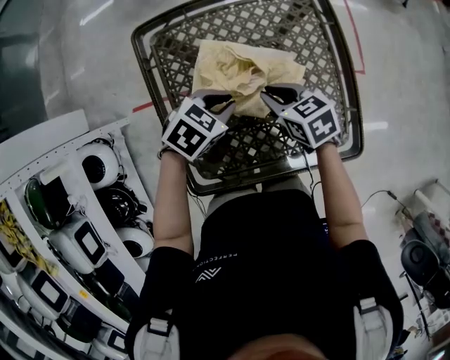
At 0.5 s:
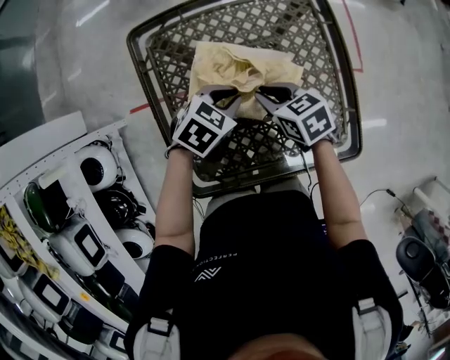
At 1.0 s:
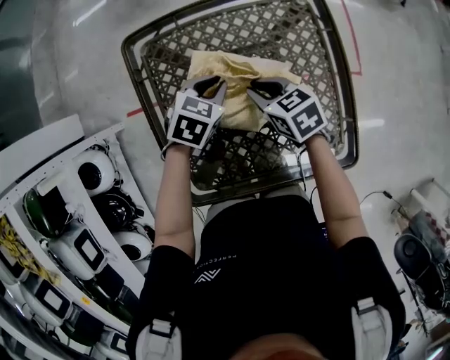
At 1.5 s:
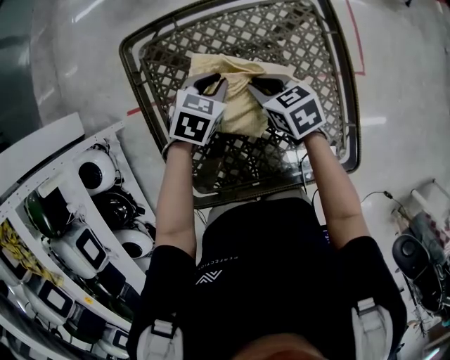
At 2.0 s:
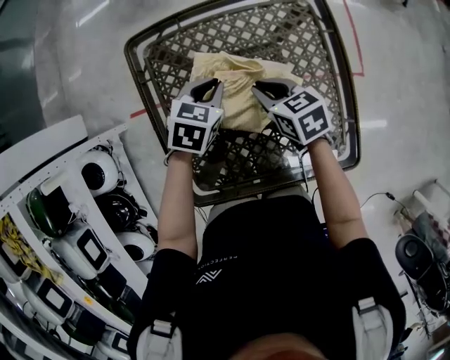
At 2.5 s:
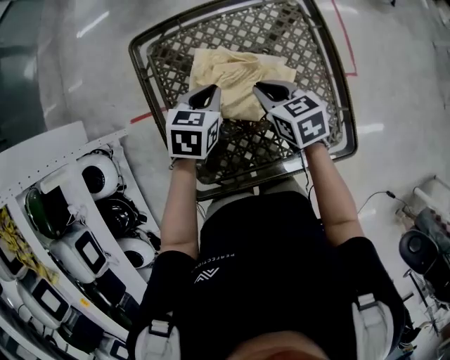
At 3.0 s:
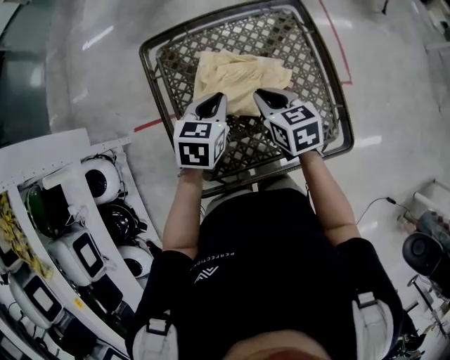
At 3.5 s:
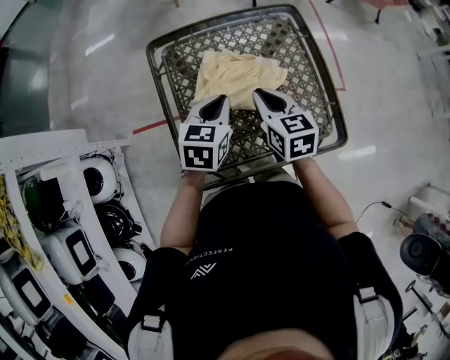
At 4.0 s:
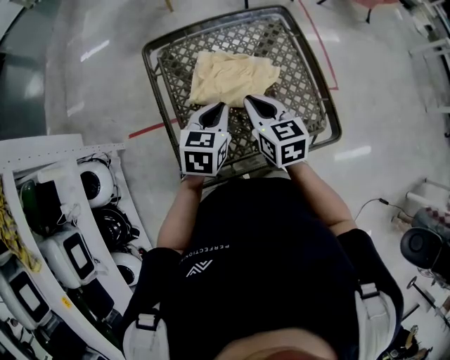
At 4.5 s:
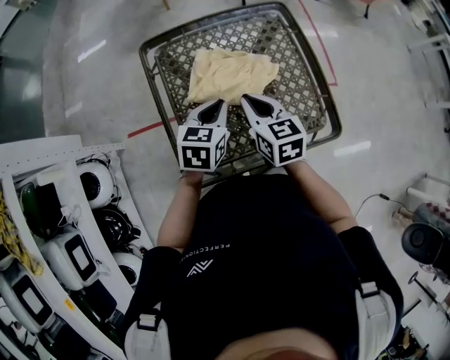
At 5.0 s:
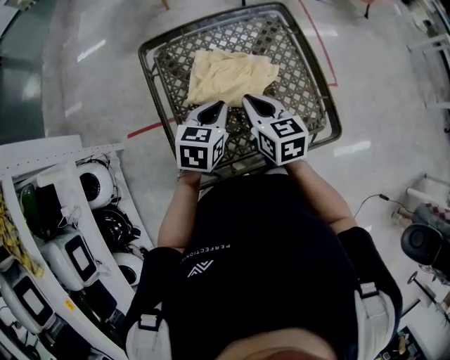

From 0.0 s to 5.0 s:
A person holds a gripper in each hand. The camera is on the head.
From 0.0 s to 2.5 s: The left gripper changes its angle by approximately 30 degrees.
From 2.5 s to 5.0 s: Both grippers travel together backward and upward, roughly 10 cm.

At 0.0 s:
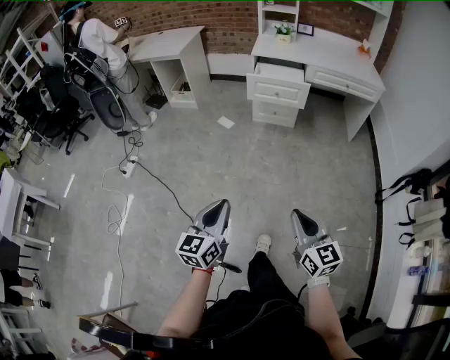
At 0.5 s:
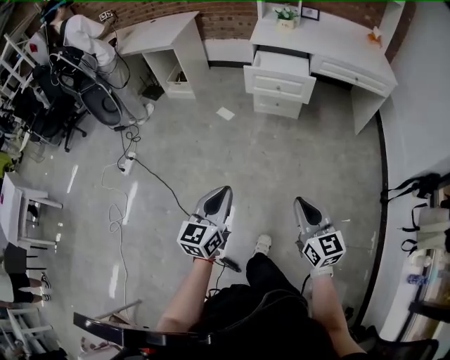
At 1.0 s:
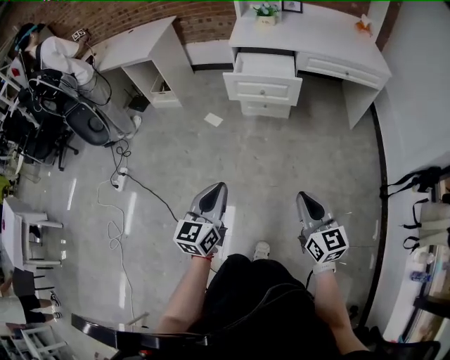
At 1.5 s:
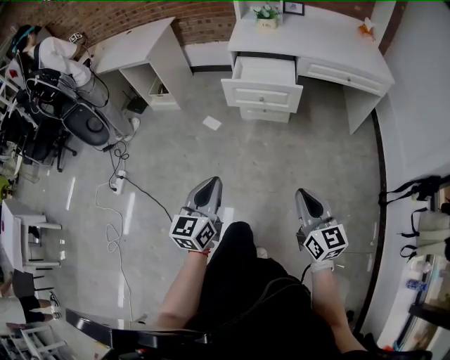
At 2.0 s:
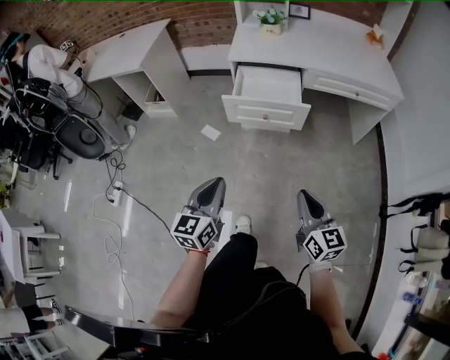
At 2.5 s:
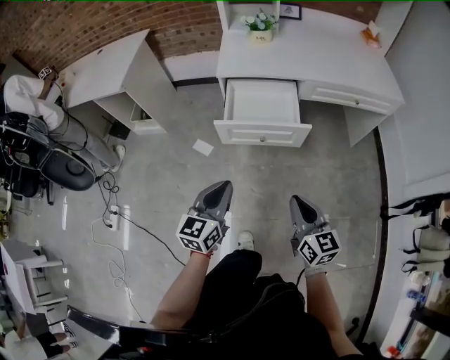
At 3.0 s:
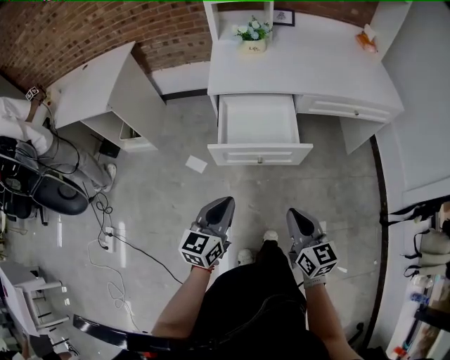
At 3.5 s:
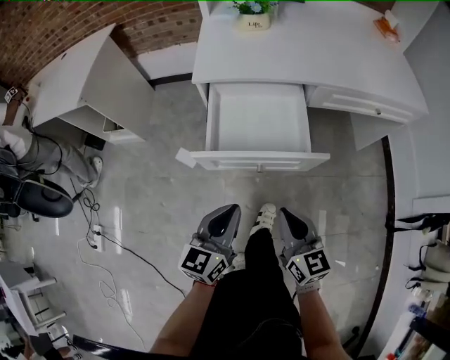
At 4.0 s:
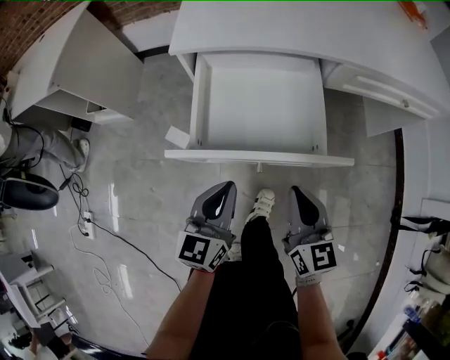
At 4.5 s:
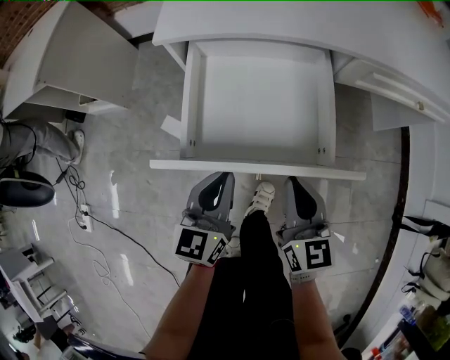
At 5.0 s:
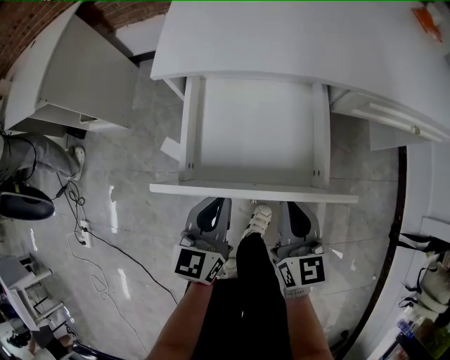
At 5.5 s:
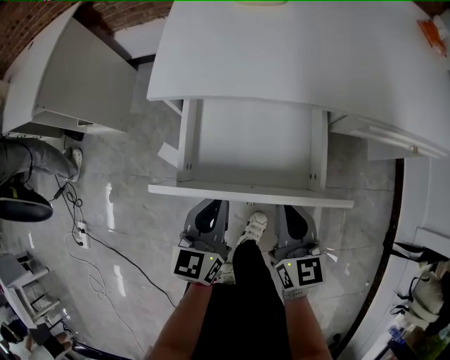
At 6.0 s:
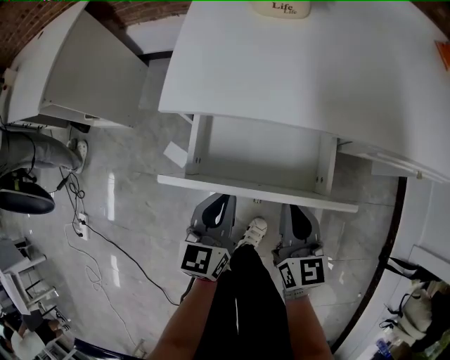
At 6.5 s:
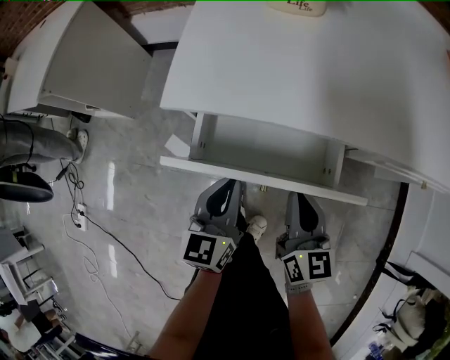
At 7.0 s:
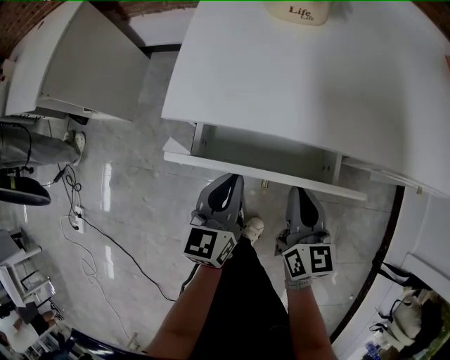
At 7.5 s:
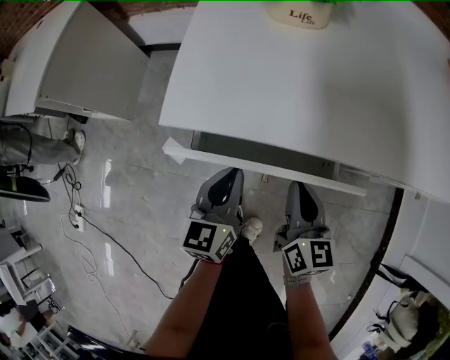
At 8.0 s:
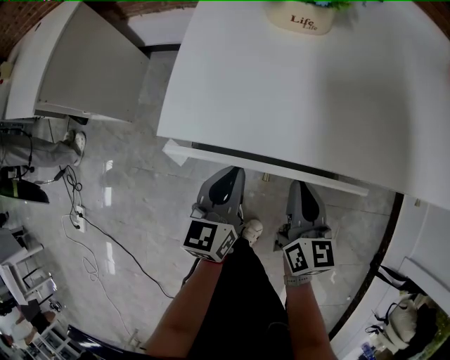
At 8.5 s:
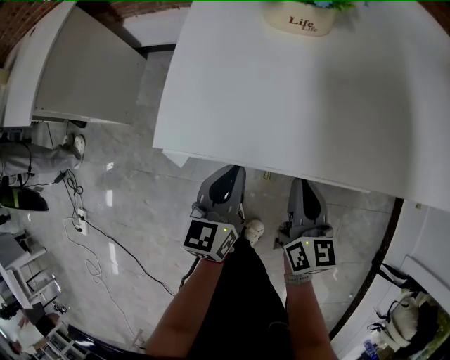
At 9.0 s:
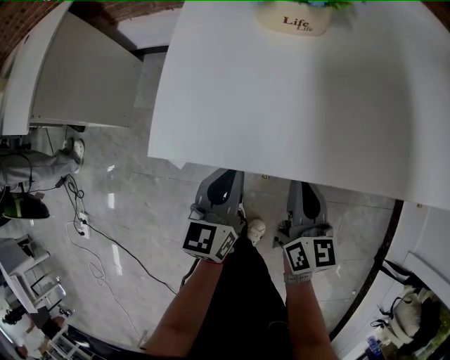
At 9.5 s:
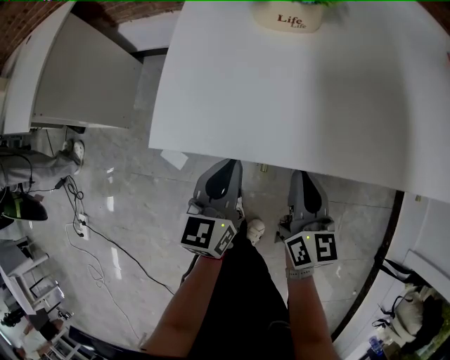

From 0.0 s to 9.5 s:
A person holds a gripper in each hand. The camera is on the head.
From 0.0 s to 2.0 s: The two grippers travel together, forward, about 40 cm.
From 2.0 s to 4.0 s: The grippers both shift forward and downward by approximately 40 cm.
From 4.0 s to 5.5 s: Both grippers travel together forward, some 10 cm.
From 5.5 s to 7.5 s: Both grippers move forward, some 10 cm.
From 7.5 s to 9.5 s: The left gripper goes approximately 5 cm forward; the right gripper shifts by approximately 5 cm.

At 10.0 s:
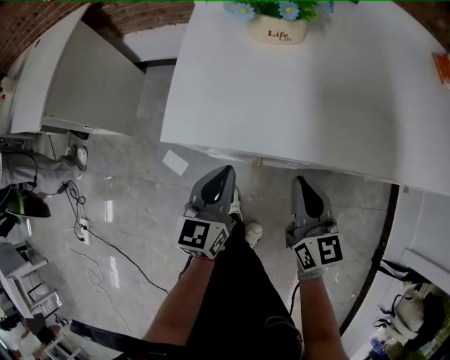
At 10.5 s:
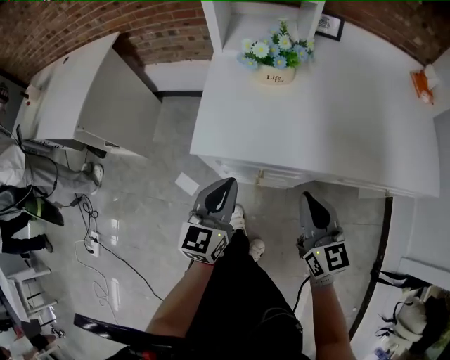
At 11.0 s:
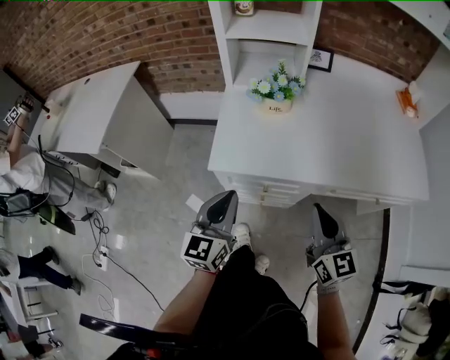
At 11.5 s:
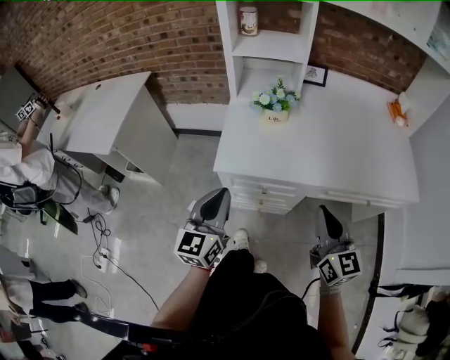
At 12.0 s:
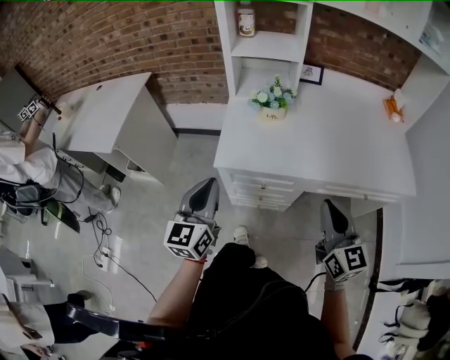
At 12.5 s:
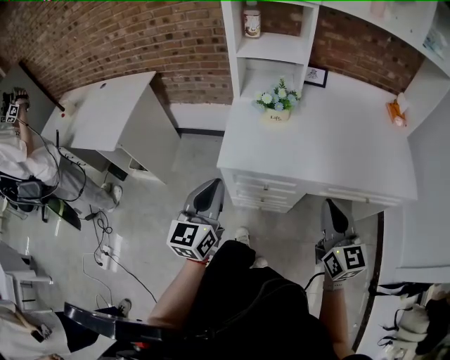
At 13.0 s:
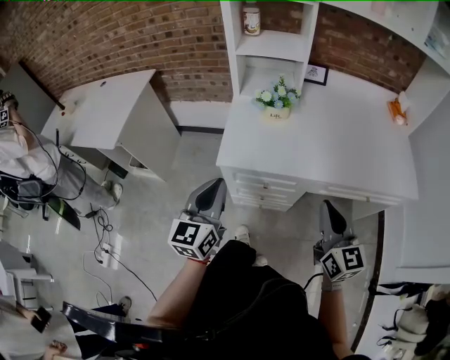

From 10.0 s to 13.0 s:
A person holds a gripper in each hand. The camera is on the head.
From 10.0 s to 11.5 s: The grippers both shift upward by roughly 25 cm.
From 11.5 s to 13.0 s: The grippers move only a little.

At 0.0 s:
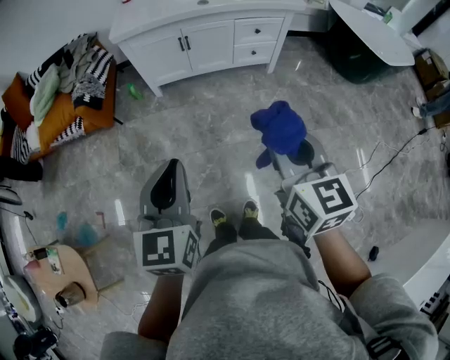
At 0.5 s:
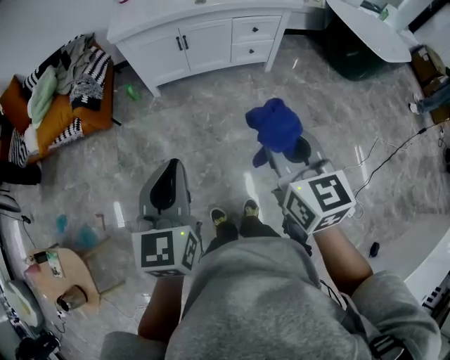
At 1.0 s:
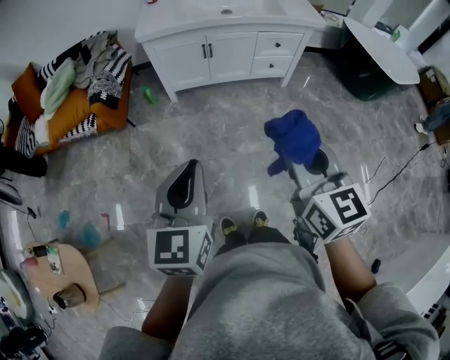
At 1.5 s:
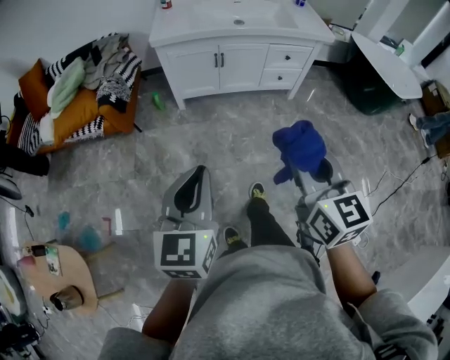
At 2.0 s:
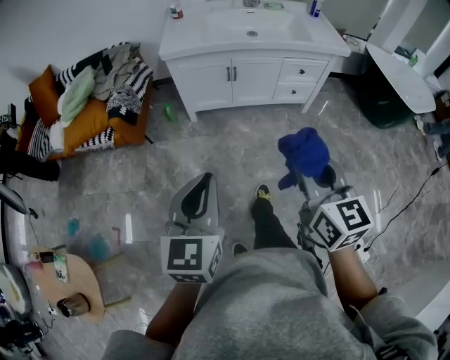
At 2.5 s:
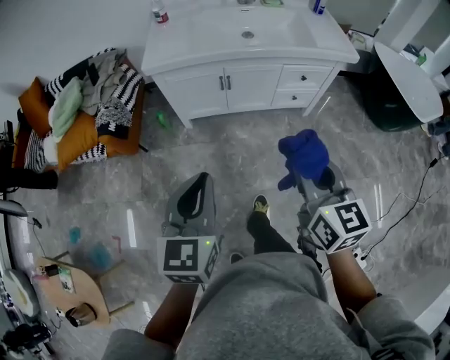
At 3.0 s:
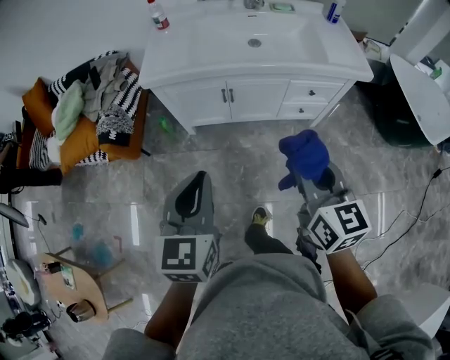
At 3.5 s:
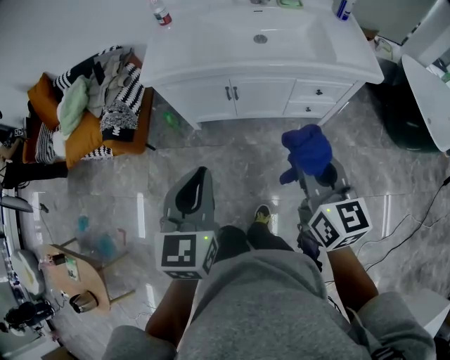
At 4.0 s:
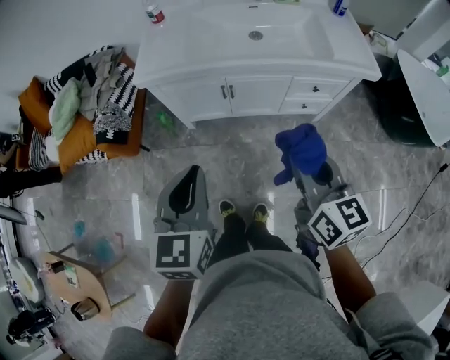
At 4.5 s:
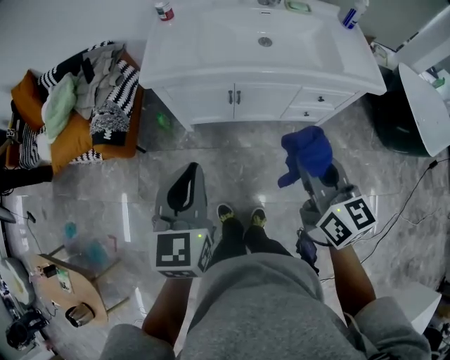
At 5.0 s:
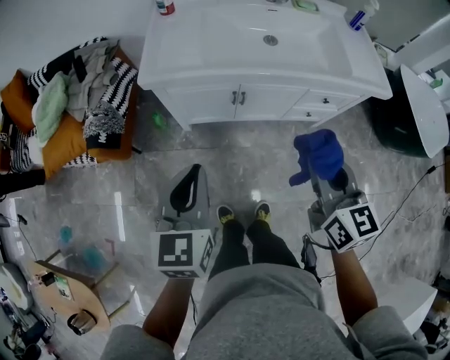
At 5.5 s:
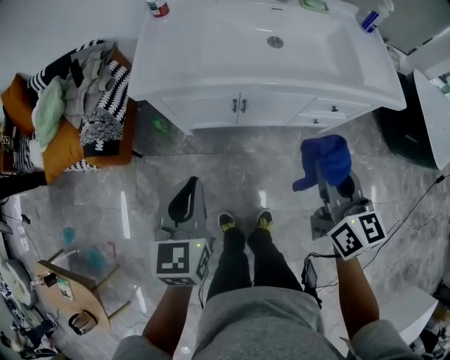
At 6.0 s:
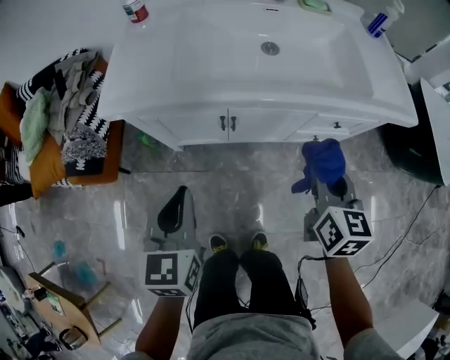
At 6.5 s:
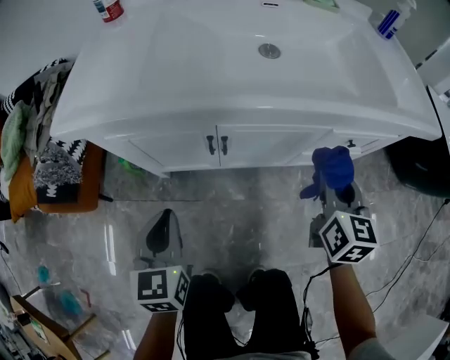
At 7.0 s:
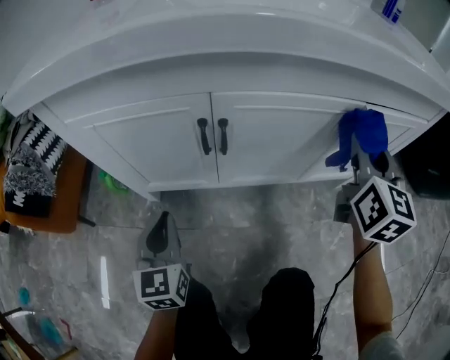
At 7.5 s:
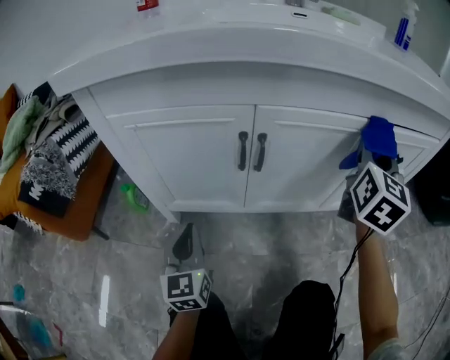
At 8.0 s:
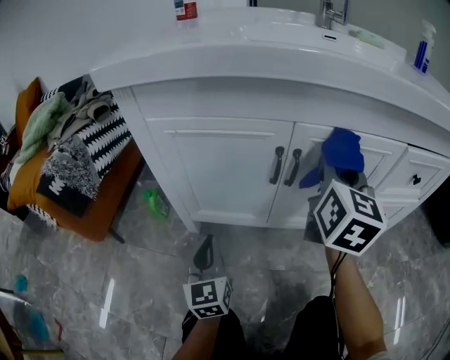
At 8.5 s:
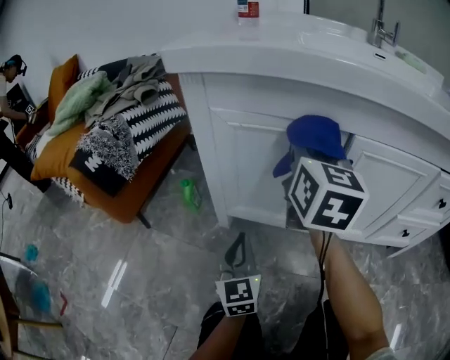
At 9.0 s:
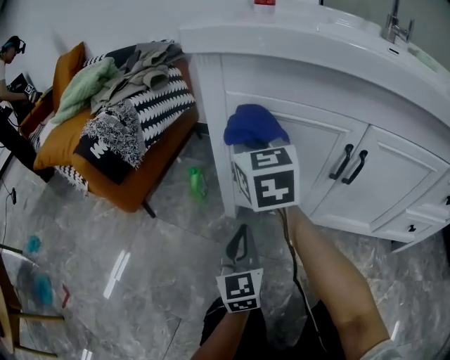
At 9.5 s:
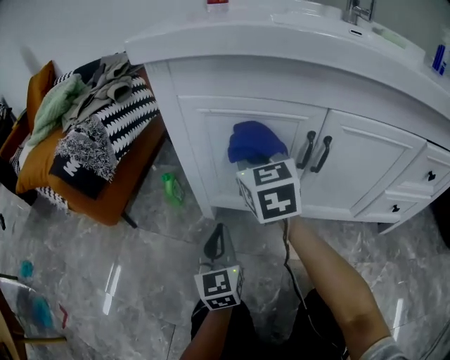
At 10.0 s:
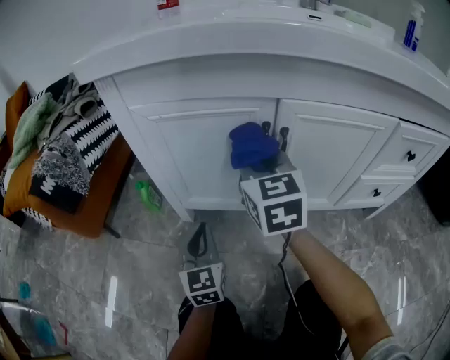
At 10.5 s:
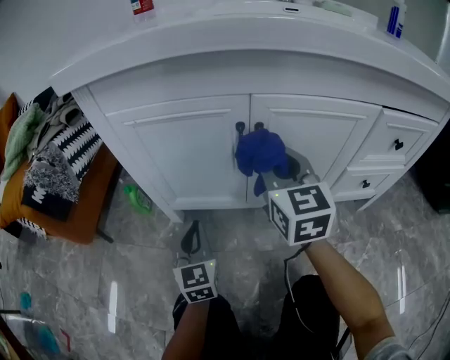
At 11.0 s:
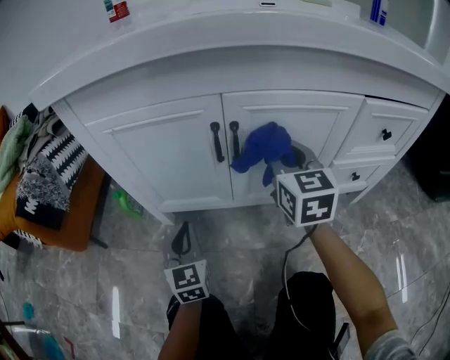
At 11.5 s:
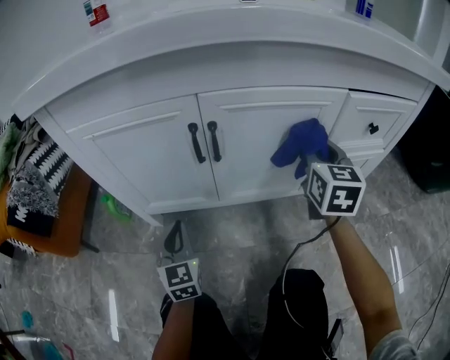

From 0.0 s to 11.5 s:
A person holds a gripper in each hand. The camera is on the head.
From 0.0 s to 2.0 s: Both grippers move to the left and forward, about 10 cm.
From 2.0 s to 4.0 s: The two grippers go roughly 30 cm forward.
From 4.0 s to 6.0 s: The two grippers go about 25 cm forward and downward. The right gripper turns by roughly 20 degrees.
From 6.0 s to 7.5 s: The right gripper travels downward and forward by approximately 25 cm, and swivels roughly 30 degrees. The left gripper is displaced downward by roughly 40 cm, and rotates some 20 degrees.
From 7.5 s to 9.5 s: The left gripper changes place by about 5 cm. Meanwhile the right gripper shifts by roughly 40 cm, and turns by some 50 degrees.
From 9.5 s to 11.5 s: The left gripper goes some 10 cm to the right; the right gripper is displaced to the right by about 40 cm, and turns by approximately 40 degrees.
